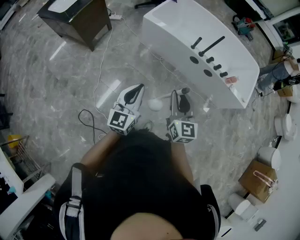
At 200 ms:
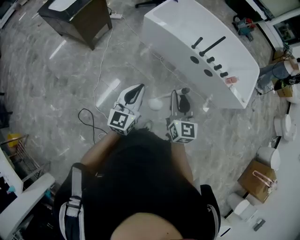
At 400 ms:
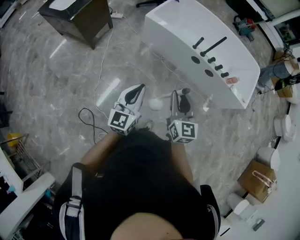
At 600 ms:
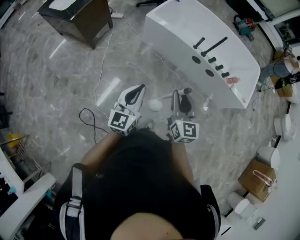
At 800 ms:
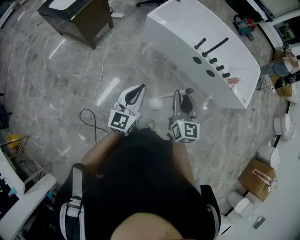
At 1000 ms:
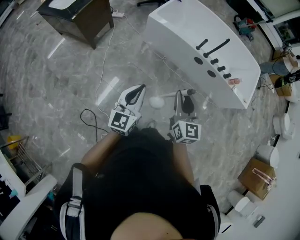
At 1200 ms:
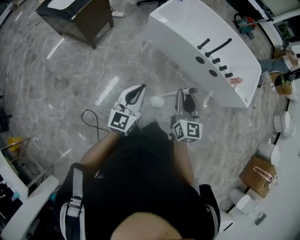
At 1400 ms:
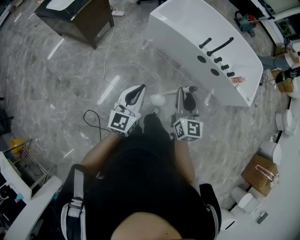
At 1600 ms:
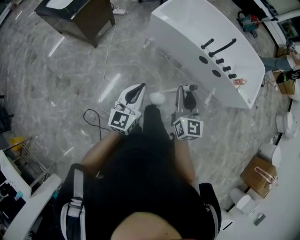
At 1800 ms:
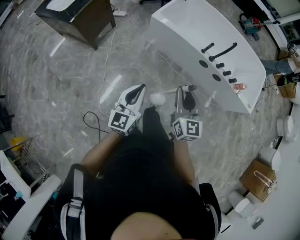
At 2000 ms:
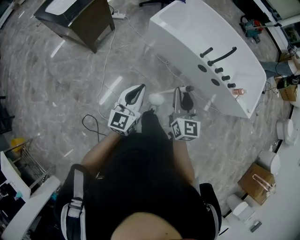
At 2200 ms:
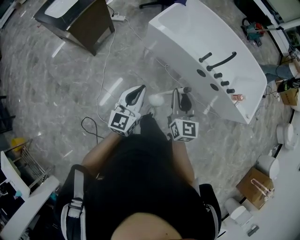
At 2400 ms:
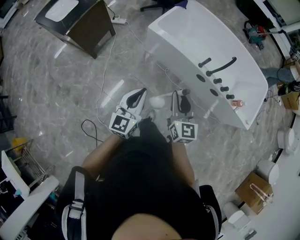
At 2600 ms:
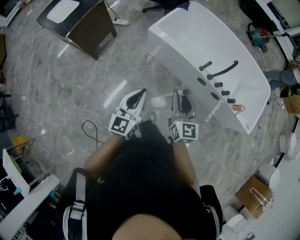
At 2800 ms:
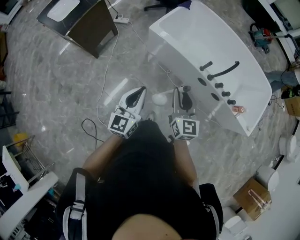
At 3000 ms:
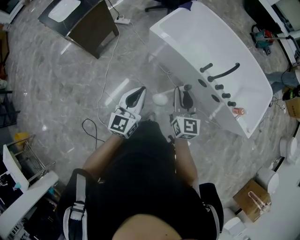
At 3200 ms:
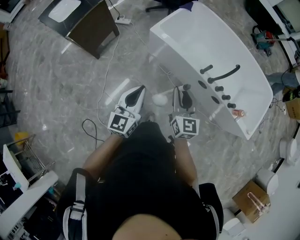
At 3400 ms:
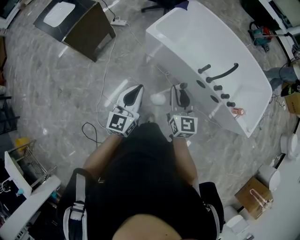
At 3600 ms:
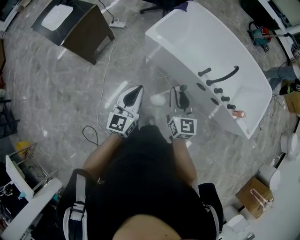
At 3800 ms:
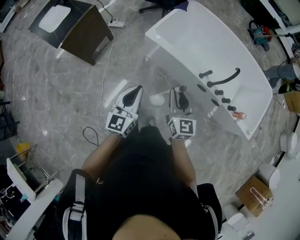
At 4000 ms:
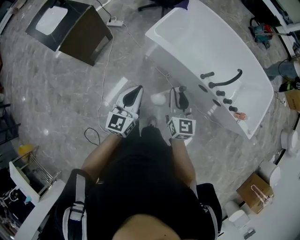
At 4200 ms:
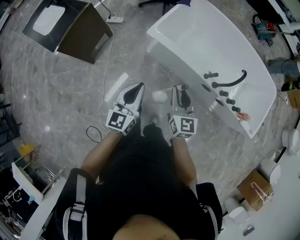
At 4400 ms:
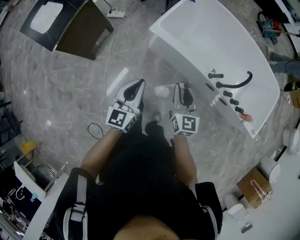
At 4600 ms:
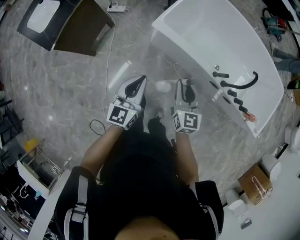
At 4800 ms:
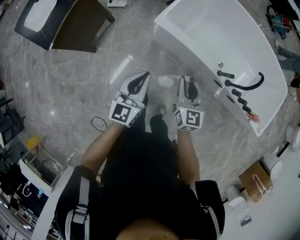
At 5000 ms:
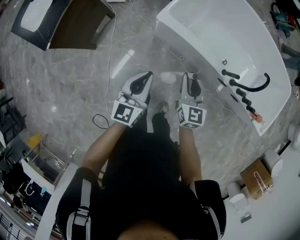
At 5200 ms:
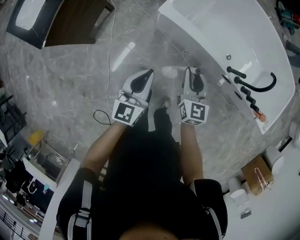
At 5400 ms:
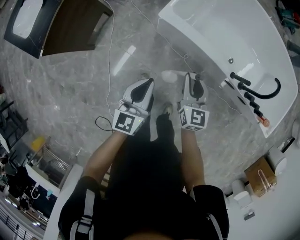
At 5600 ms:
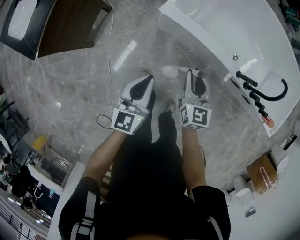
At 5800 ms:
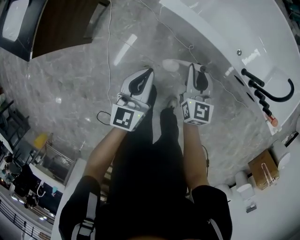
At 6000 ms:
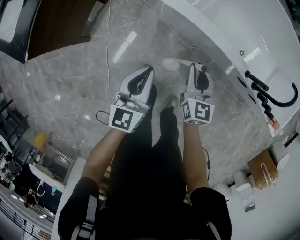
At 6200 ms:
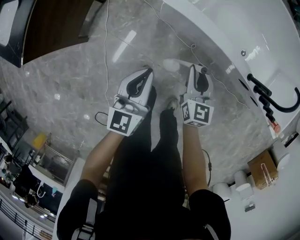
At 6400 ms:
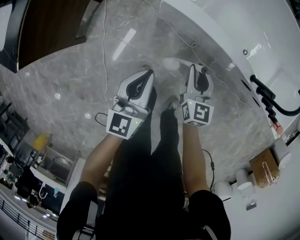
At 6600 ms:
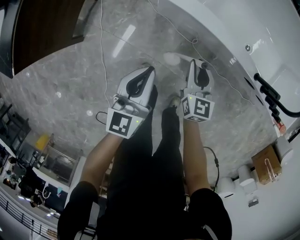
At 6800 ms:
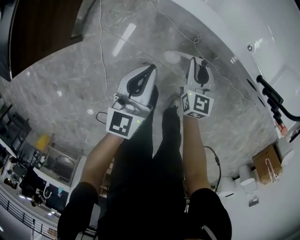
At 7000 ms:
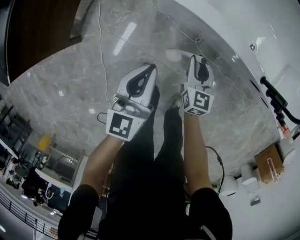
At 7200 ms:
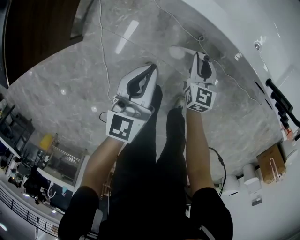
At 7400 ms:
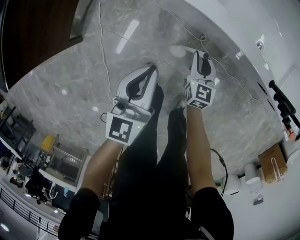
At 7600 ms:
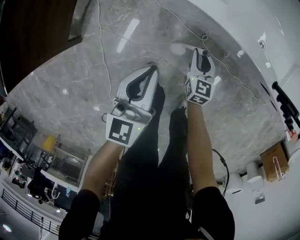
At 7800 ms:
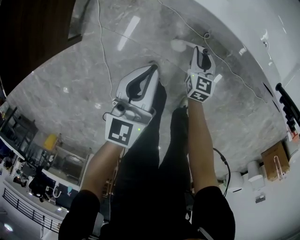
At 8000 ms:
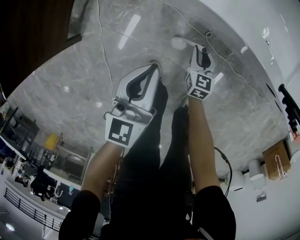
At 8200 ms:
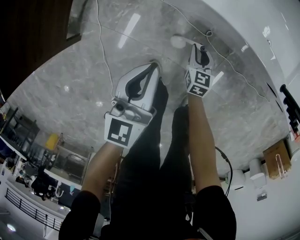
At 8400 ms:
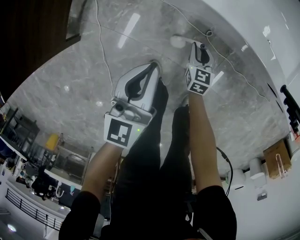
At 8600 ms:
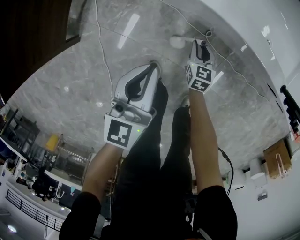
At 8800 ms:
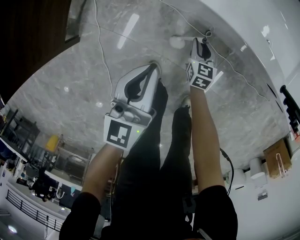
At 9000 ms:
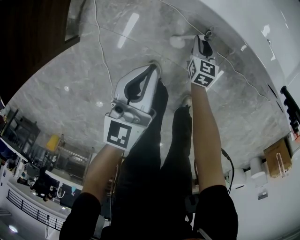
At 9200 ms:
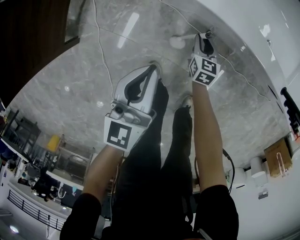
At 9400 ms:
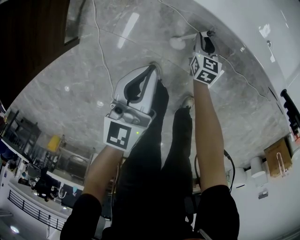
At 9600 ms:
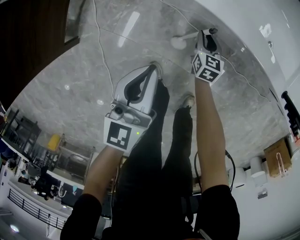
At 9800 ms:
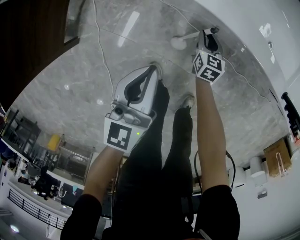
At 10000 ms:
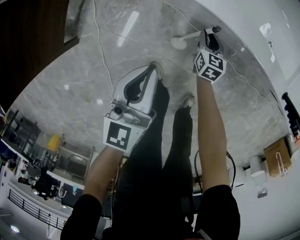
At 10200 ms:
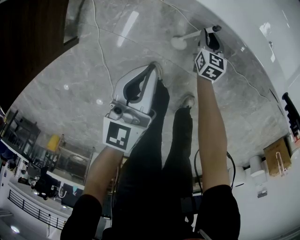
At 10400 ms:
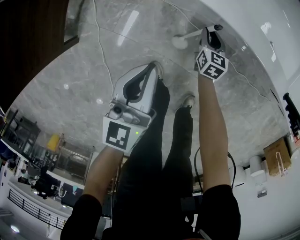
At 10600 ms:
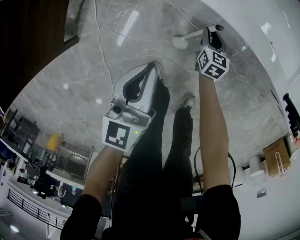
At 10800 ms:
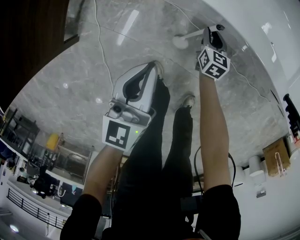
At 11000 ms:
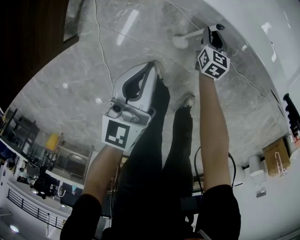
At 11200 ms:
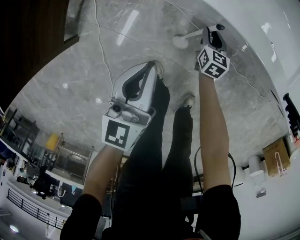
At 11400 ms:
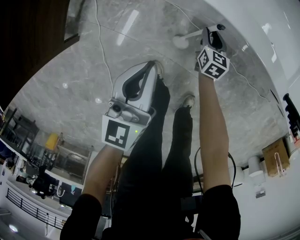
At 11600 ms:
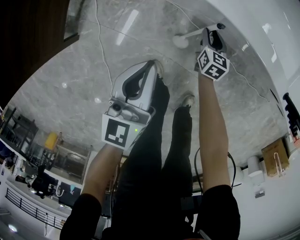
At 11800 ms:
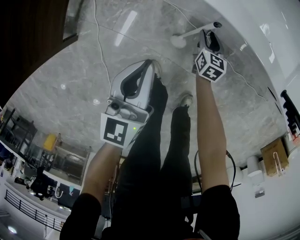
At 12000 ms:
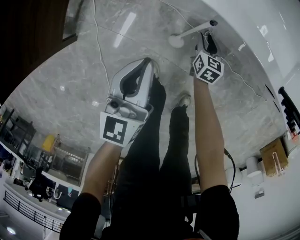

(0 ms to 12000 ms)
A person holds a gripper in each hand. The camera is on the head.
0 ms - 1600 ms: The right gripper moves to the left and forward, about 10 cm; the left gripper goes approximately 10 cm to the left.
1600 ms - 3000 ms: The right gripper shifts roughly 25 cm forward. Meanwhile the left gripper is displaced forward and to the right by about 20 cm.
3000 ms - 4400 ms: The right gripper travels forward, downward and to the left by approximately 20 cm. Meanwhile the left gripper shifts about 20 cm forward.
4400 ms - 6000 ms: Both grippers travel together downward and forward, some 25 cm.
6000 ms - 7600 ms: The left gripper is displaced downward and forward by approximately 15 cm. Meanwhile the right gripper is displaced downward by roughly 25 cm.
7600 ms - 9000 ms: The right gripper travels downward by roughly 10 cm.
9000 ms - 10400 ms: The right gripper is displaced forward by some 5 cm.
10400 ms - 12000 ms: The grippers stay close to where they were, moving slightly.

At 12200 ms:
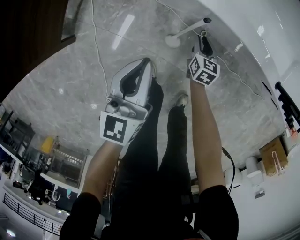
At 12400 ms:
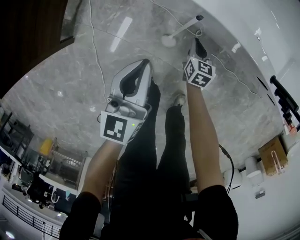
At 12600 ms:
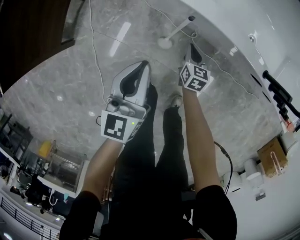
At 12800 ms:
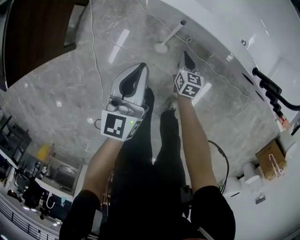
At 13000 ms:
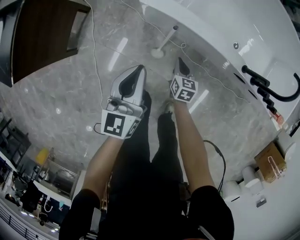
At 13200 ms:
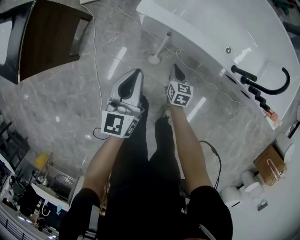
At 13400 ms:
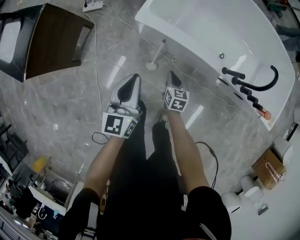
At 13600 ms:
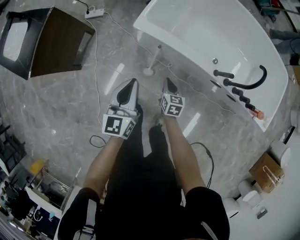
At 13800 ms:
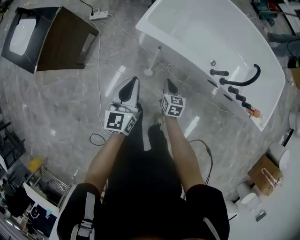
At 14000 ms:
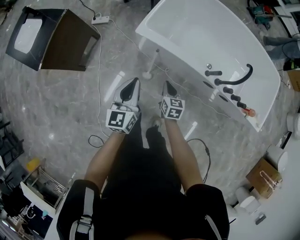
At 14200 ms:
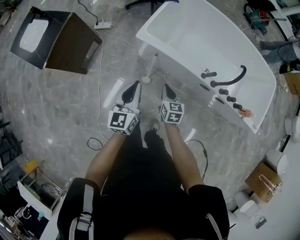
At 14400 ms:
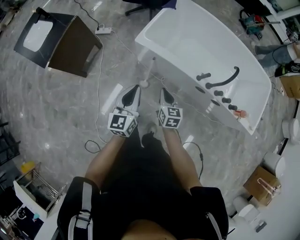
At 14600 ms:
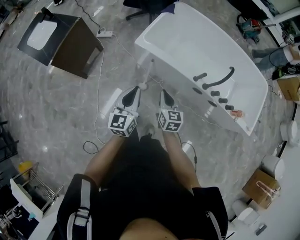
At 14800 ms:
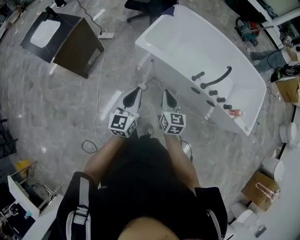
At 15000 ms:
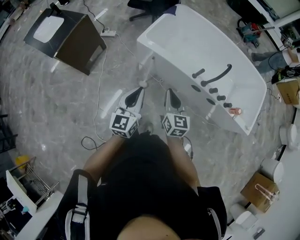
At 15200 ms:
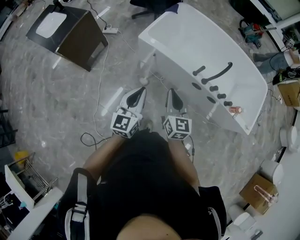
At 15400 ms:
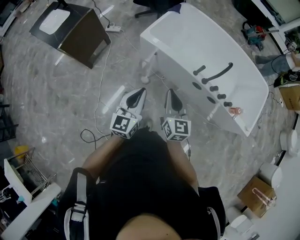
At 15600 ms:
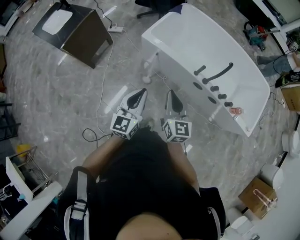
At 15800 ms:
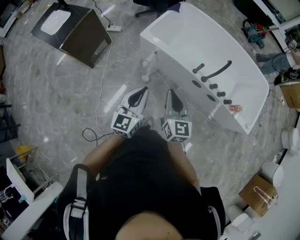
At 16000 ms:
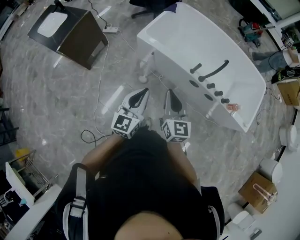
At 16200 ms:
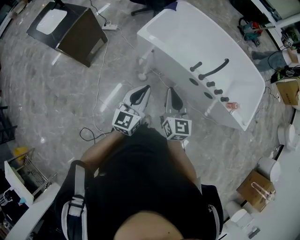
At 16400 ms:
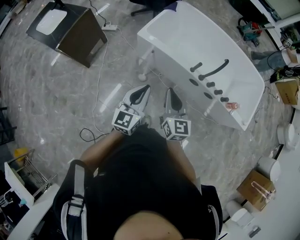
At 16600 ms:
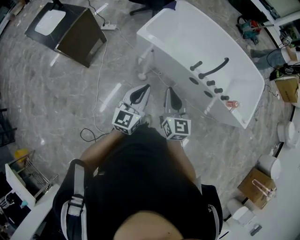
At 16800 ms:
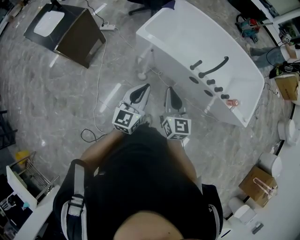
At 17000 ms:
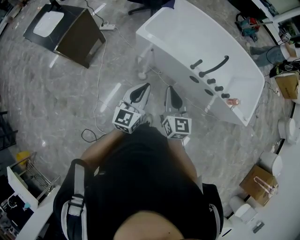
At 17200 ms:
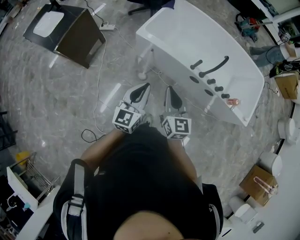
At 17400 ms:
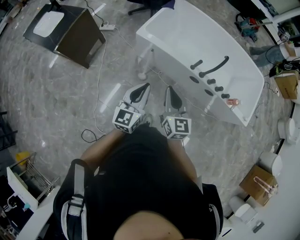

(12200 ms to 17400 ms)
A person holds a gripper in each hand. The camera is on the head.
12200 ms - 14000 ms: The grippers both shift upward and backward by approximately 35 cm. The right gripper closes.
14000 ms - 15600 ms: The left gripper moves backward, upward and to the right, some 30 cm. Meanwhile the right gripper travels upward and backward by roughly 35 cm, and swivels about 30 degrees.
15600 ms - 17400 ms: The grippers stay close to where they were, moving slightly.

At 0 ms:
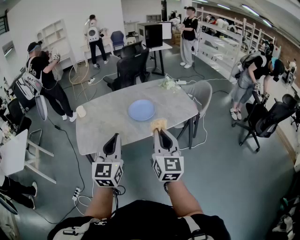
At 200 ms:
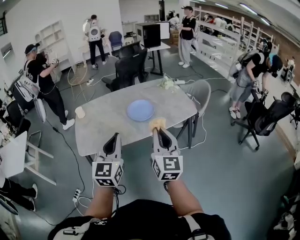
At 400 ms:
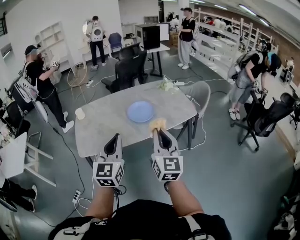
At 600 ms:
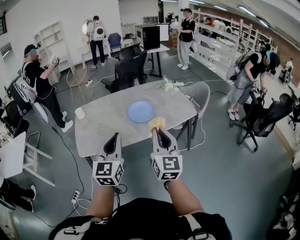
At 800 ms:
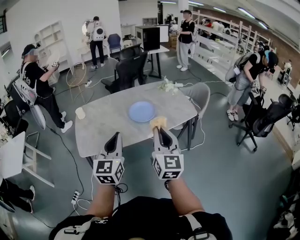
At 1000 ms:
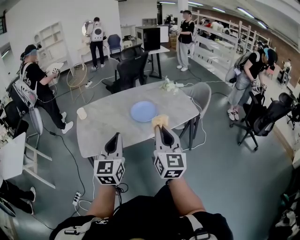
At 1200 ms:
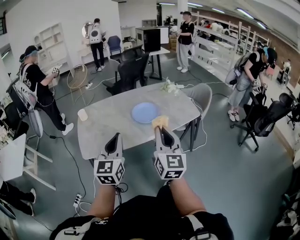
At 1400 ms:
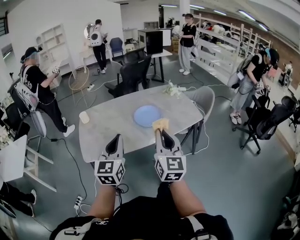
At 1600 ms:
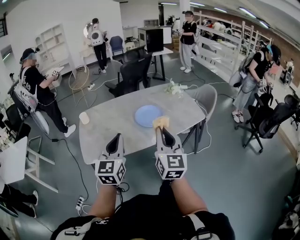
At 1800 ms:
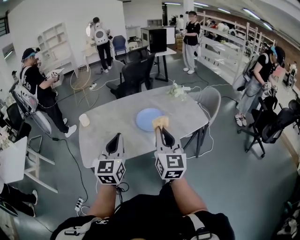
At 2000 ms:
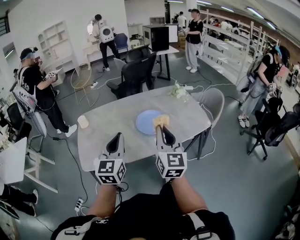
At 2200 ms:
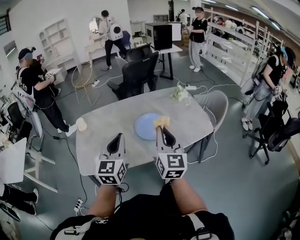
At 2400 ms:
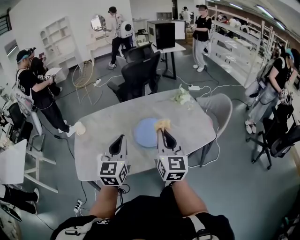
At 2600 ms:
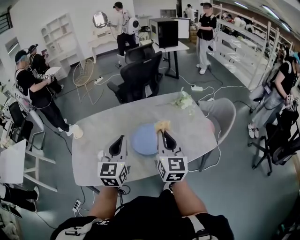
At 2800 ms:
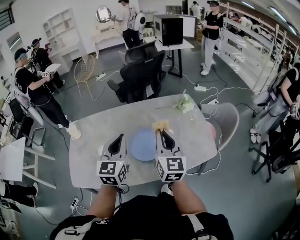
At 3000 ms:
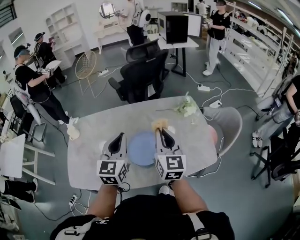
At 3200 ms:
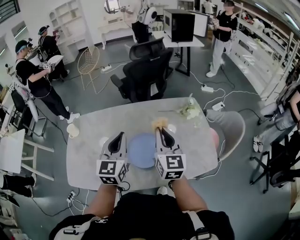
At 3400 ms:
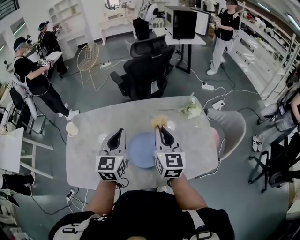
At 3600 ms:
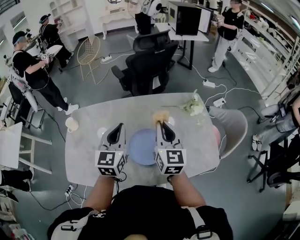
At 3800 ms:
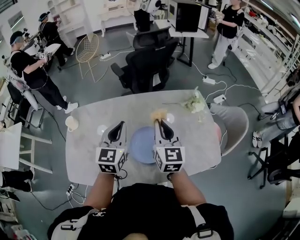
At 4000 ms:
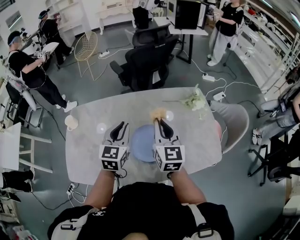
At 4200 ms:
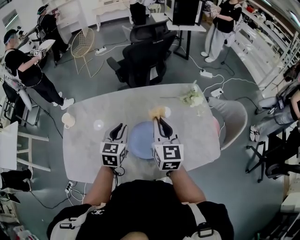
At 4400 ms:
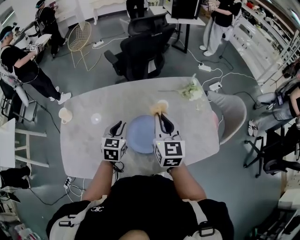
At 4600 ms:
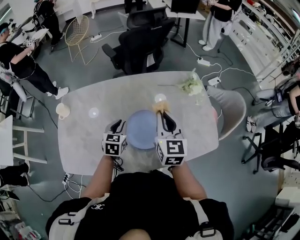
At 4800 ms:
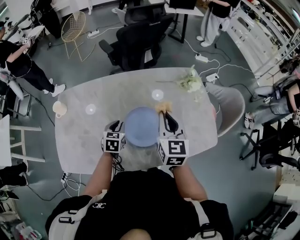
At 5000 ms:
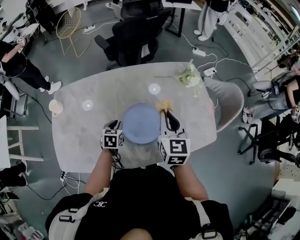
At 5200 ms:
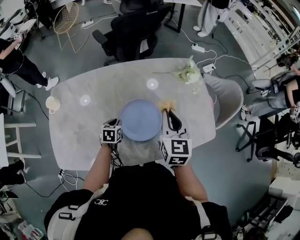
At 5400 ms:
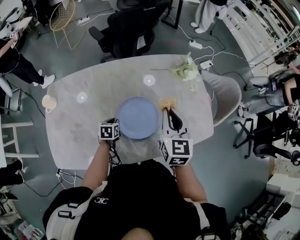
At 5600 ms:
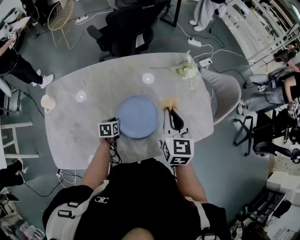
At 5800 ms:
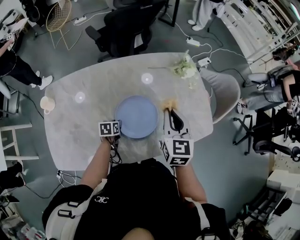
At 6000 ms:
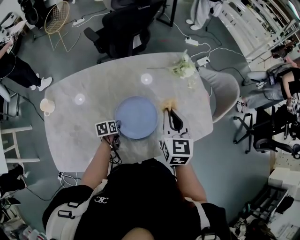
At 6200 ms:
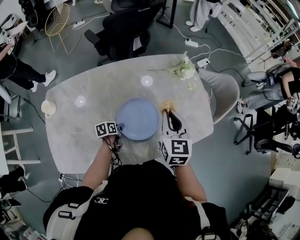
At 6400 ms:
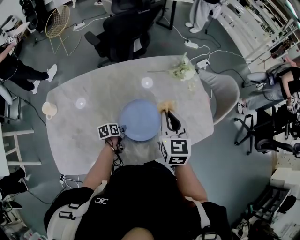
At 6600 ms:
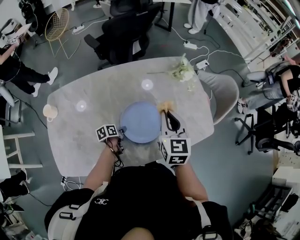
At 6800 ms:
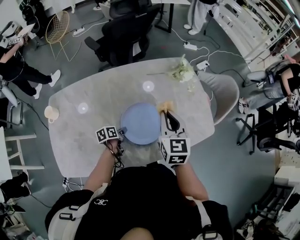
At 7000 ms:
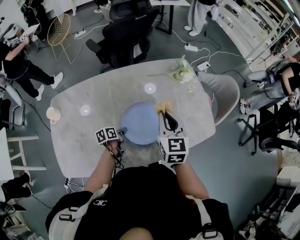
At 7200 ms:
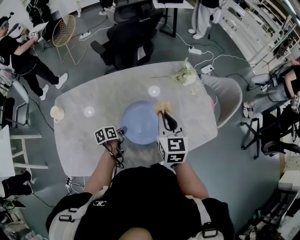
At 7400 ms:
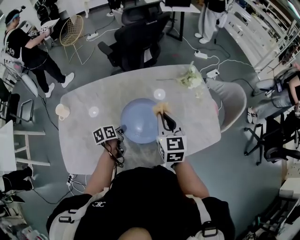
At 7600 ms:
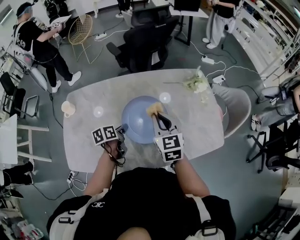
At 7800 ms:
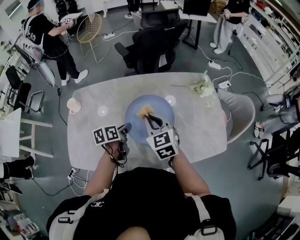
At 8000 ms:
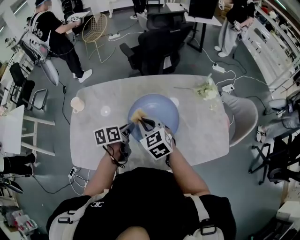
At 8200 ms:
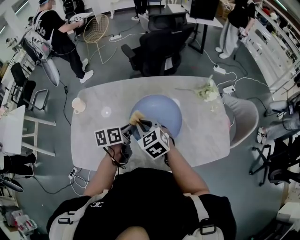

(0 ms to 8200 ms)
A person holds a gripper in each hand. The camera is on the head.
0 ms - 1600 ms: The left gripper heads to the left and forward, covering about 10 cm, while the right gripper heads to the left, covering roughly 5 cm.
1600 ms - 3200 ms: The grippers both shift forward by about 40 cm.
3200 ms - 5000 ms: The right gripper moves downward, some 10 cm, while the left gripper heads downward, covering some 30 cm, and tips its fingers downward by about 40 degrees.
5000 ms - 6600 ms: The left gripper travels downward by some 10 cm, and rolls counterclockwise, seen from behind, by roughly 40 degrees.
6600 ms - 8200 ms: The right gripper moves roughly 20 cm, and turns by about 50 degrees. Meanwhile the left gripper heads upward, covering about 25 cm, and turns by some 20 degrees.
